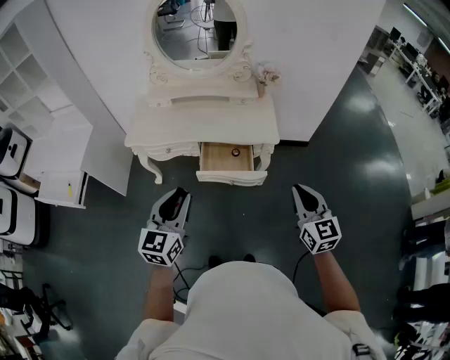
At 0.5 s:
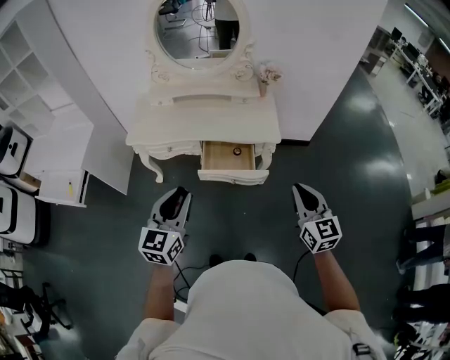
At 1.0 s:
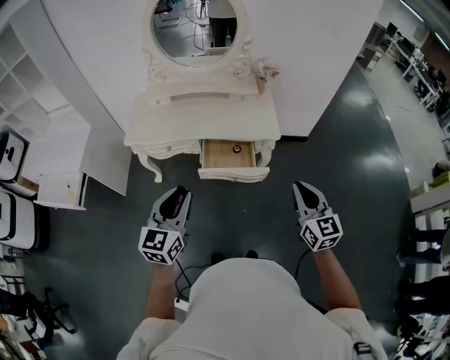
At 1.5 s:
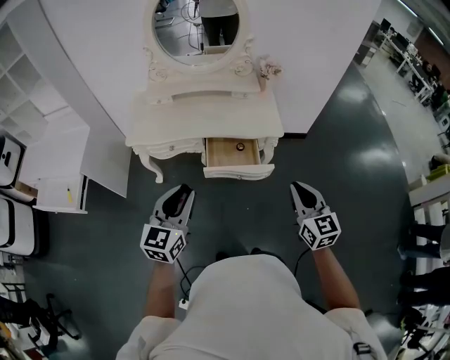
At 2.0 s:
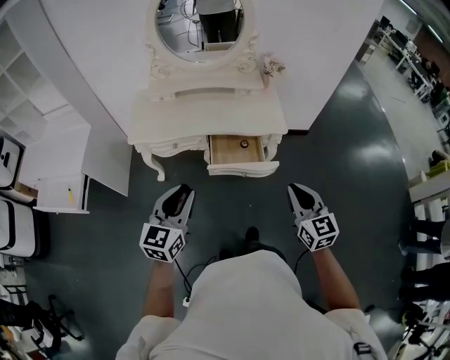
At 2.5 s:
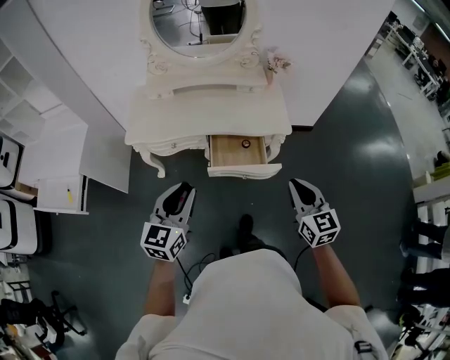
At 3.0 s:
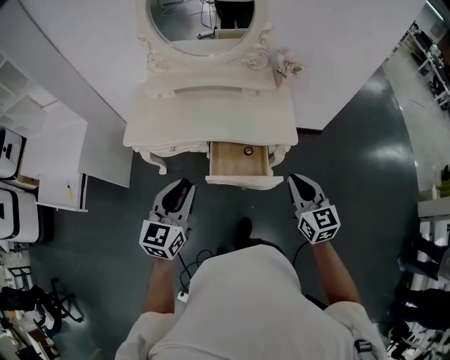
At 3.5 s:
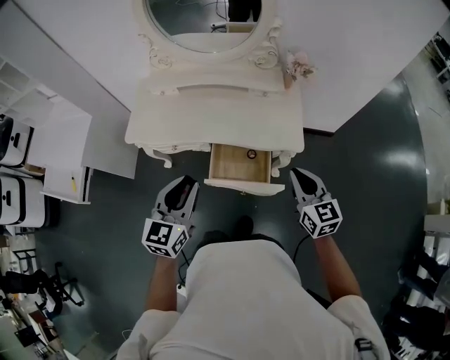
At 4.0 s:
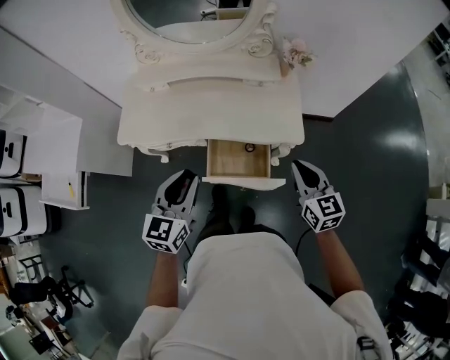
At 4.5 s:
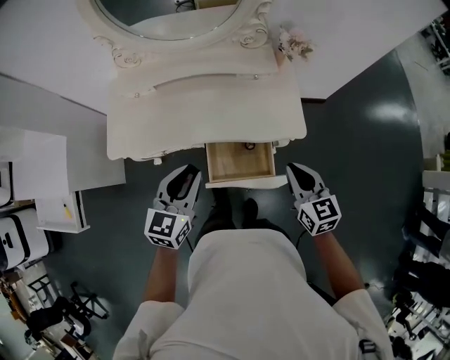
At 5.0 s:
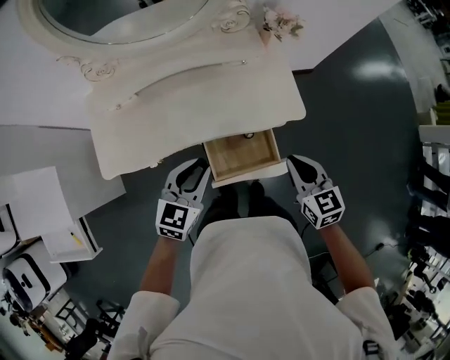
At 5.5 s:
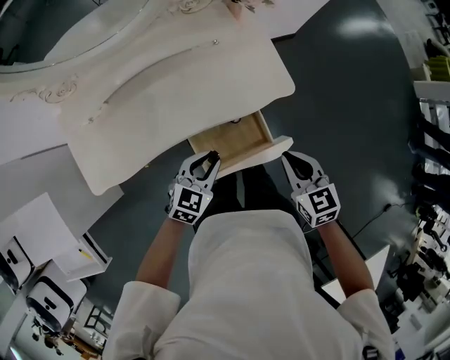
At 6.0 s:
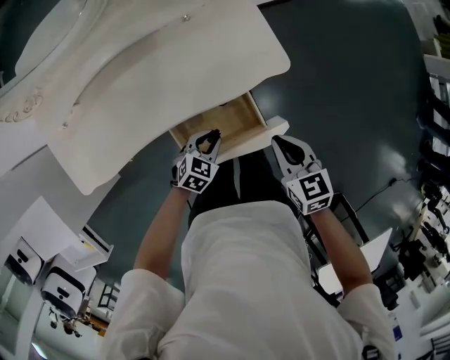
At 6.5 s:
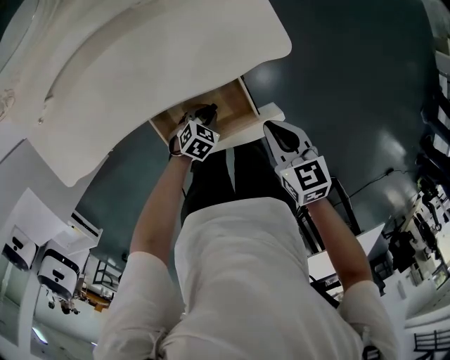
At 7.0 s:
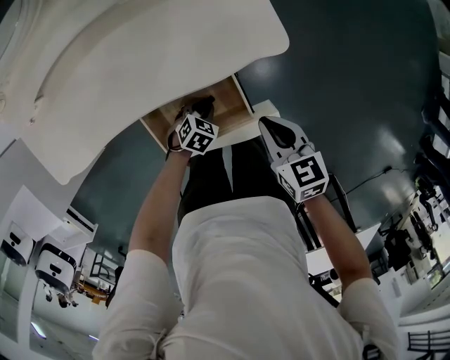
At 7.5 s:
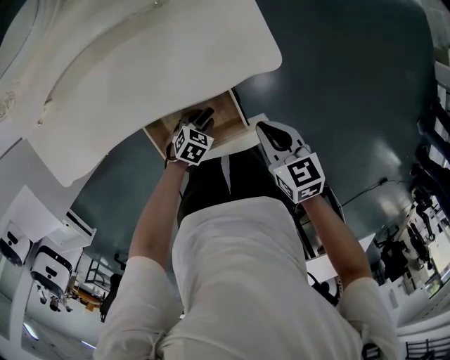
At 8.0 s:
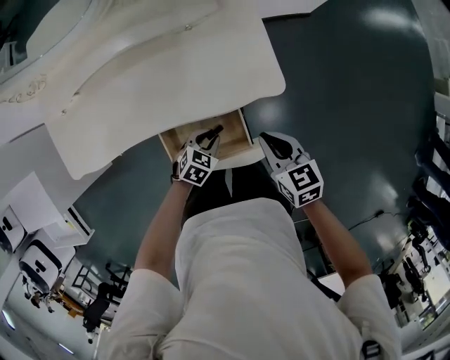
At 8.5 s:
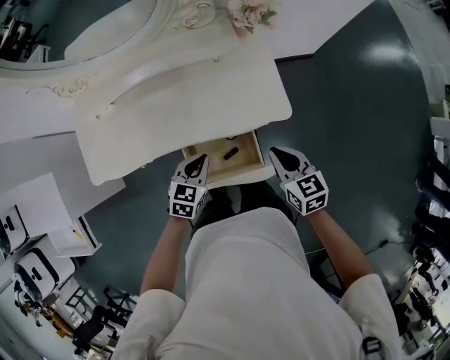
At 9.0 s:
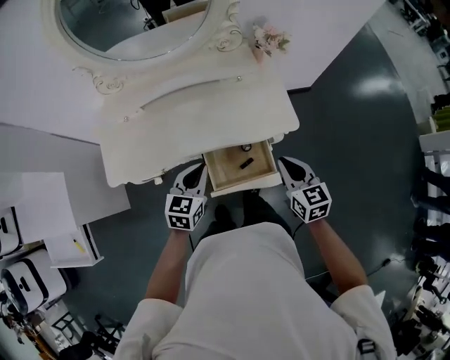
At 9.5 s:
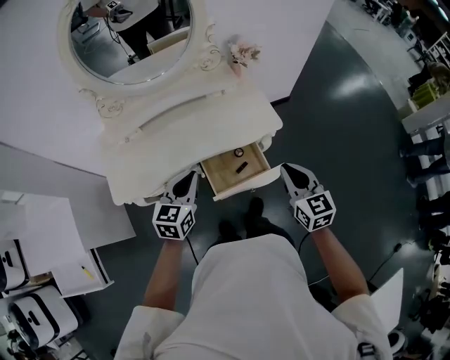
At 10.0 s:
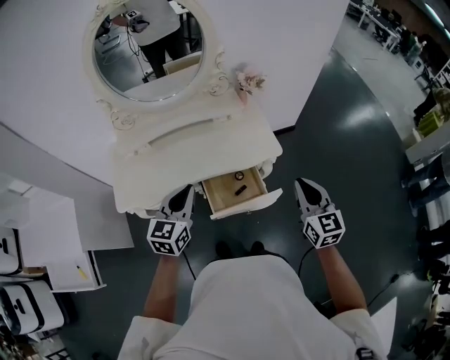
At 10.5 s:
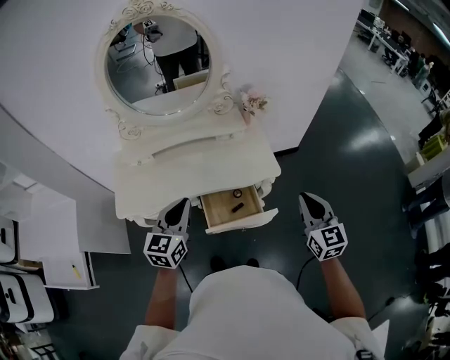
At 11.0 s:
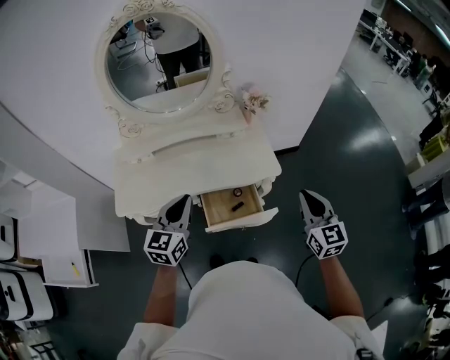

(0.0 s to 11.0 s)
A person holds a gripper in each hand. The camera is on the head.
0.0 s - 2.0 s: The grippers both shift to the left by approximately 10 cm.
2.0 s - 3.5 s: The right gripper moves forward, about 25 cm. The left gripper heads forward and to the right, covering roughly 20 cm.
3.5 s - 5.5 s: The left gripper shifts approximately 25 cm downward, and turns by approximately 50 degrees; the right gripper travels downward by approximately 10 cm, and changes its angle by some 30 degrees.
5.5 s - 7.5 s: The left gripper is displaced downward by some 25 cm, and swivels about 30 degrees; the right gripper shifts about 15 cm downward and forward.
7.5 s - 9.0 s: The right gripper travels upward by some 15 cm, and swivels about 20 degrees. The left gripper is displaced upward and to the left by approximately 40 cm, tilts its fingers some 40 degrees upward, and closes its fingers.
9.0 s - 11.0 s: The left gripper heads upward, covering about 20 cm; the right gripper goes approximately 20 cm upward and to the right, and rotates some 20 degrees.

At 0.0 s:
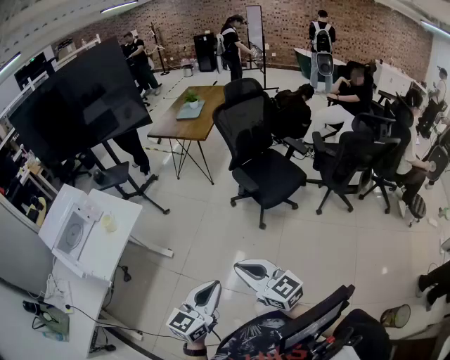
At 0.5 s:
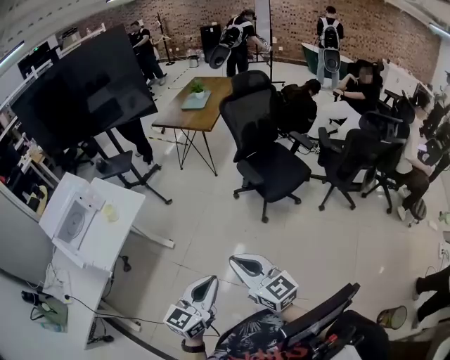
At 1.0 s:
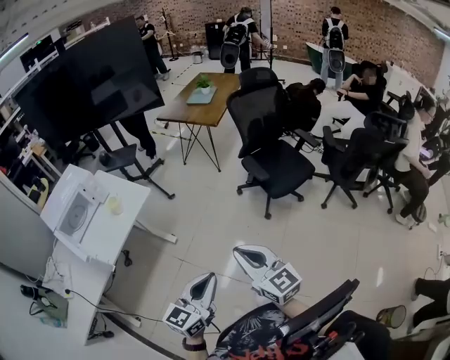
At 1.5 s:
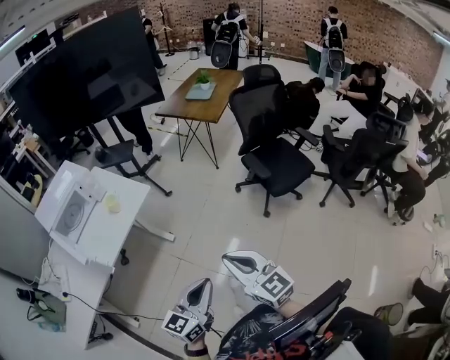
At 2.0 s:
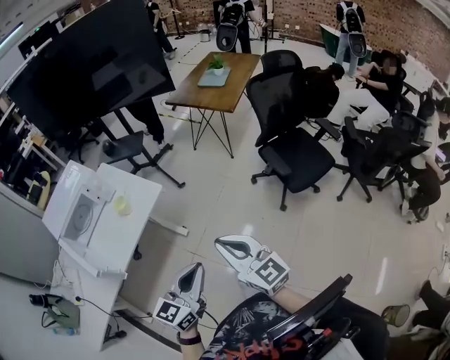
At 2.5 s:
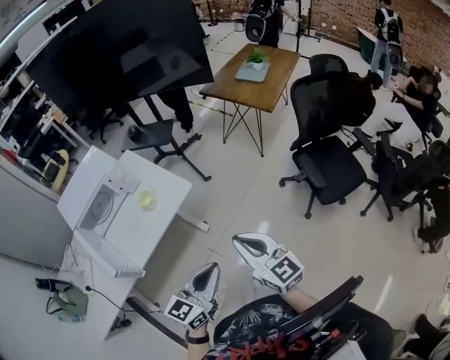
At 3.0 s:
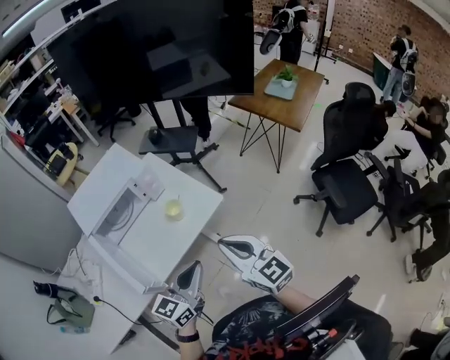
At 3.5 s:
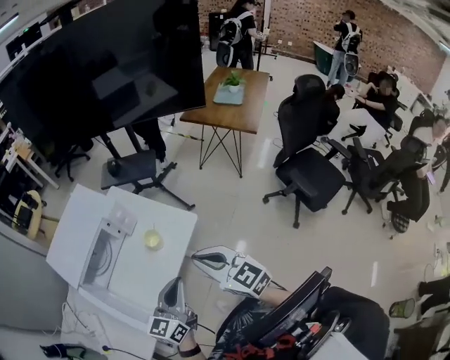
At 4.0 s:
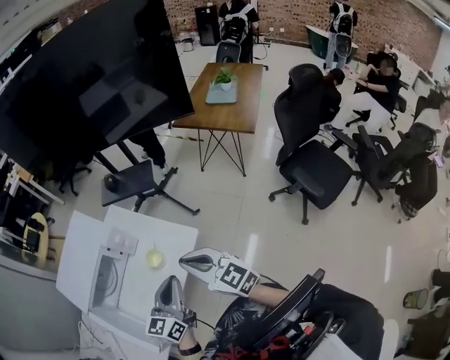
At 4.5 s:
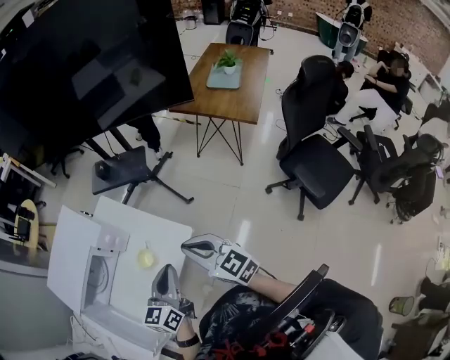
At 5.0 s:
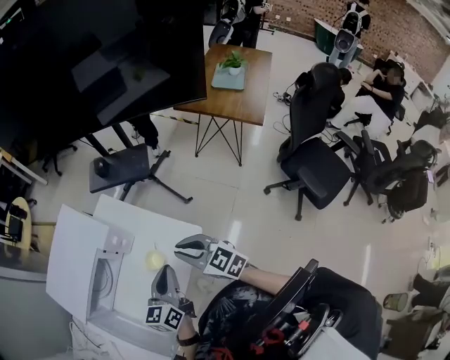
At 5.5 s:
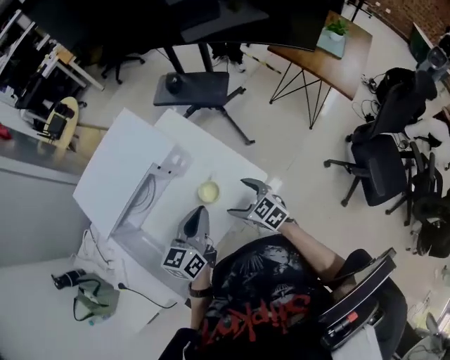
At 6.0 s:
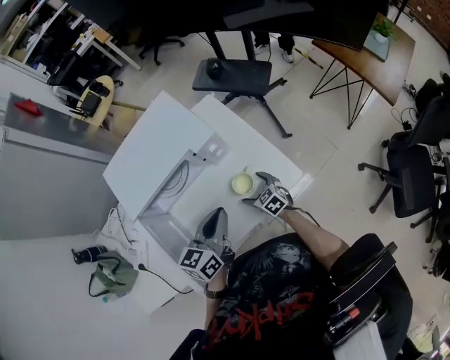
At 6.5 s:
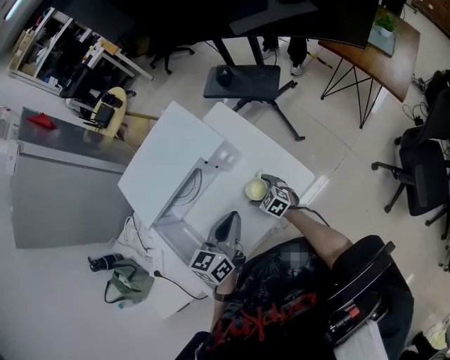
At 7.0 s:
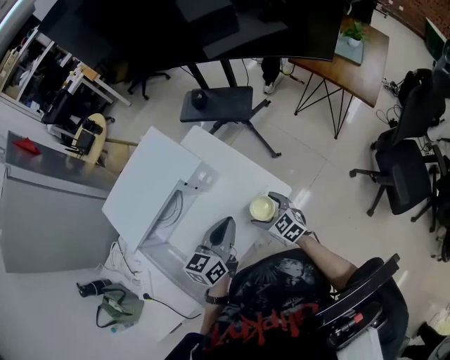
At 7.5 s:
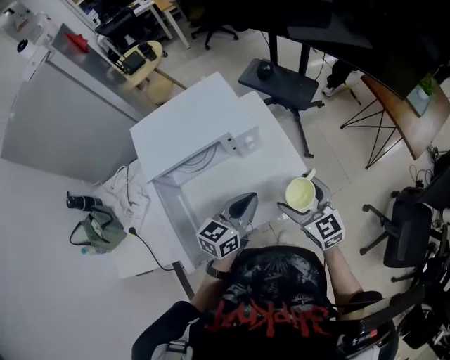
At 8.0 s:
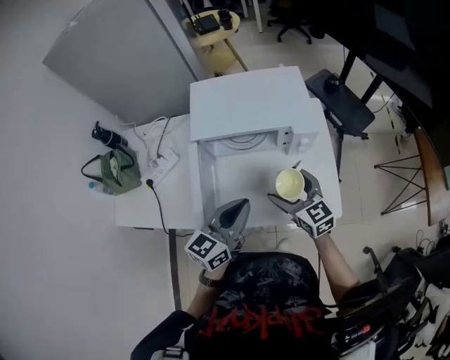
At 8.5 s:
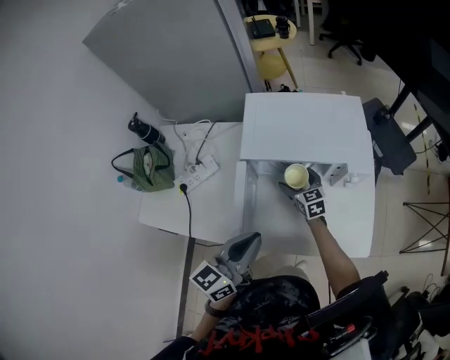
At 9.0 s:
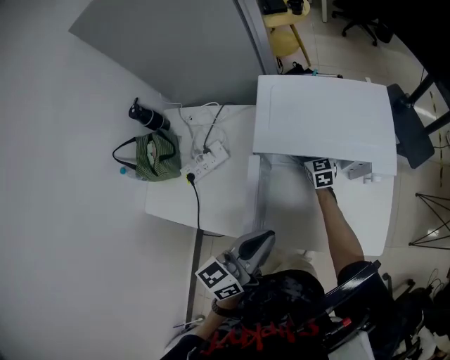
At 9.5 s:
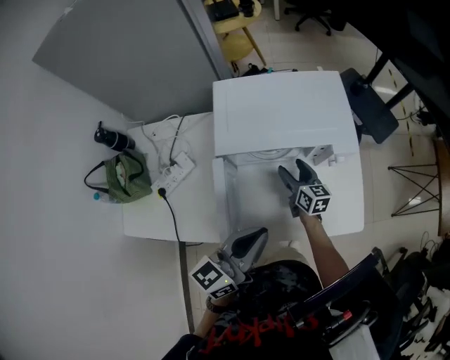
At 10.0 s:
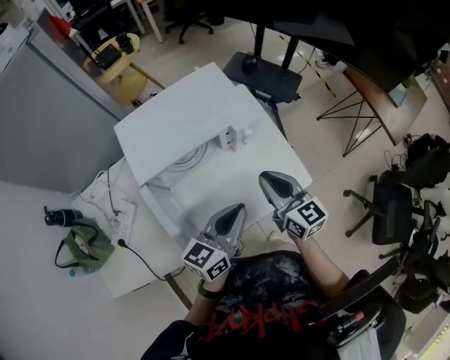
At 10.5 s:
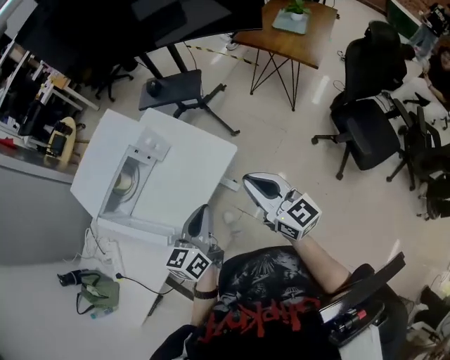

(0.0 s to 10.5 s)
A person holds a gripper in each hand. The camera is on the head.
0.0 s - 2.0 s: The grippers both shift to the left and forward by about 20 cm.
2.0 s - 4.0 s: Both grippers move forward and to the left, some 40 cm.
4.0 s - 6.5 s: The right gripper heads downward, forward and to the left, covering approximately 40 cm, tilts its fingers about 40 degrees downward, and opens up. Meanwhile the left gripper travels forward, to the left and downward by approximately 20 cm, and changes its angle by approximately 20 degrees.
6.5 s - 8.5 s: The right gripper moves some 25 cm, and swivels about 20 degrees, while the left gripper changes place by about 20 cm, and swivels some 30 degrees.
8.5 s - 10.5 s: The right gripper ends up approximately 60 cm from where it was, swivels some 50 degrees, and closes up, while the left gripper shifts by approximately 25 cm, and turns by some 40 degrees.

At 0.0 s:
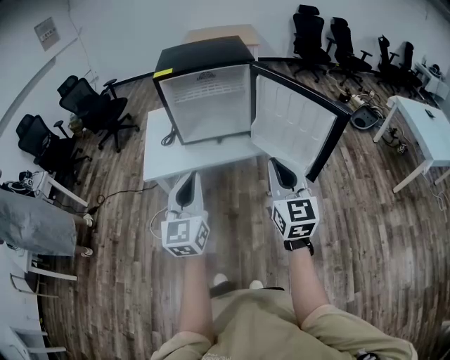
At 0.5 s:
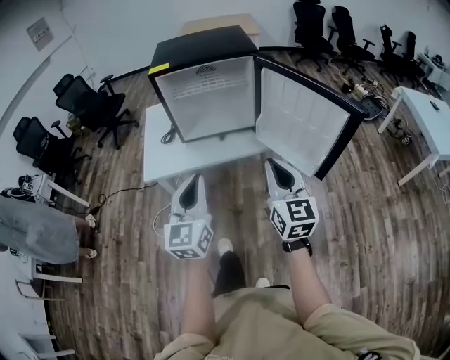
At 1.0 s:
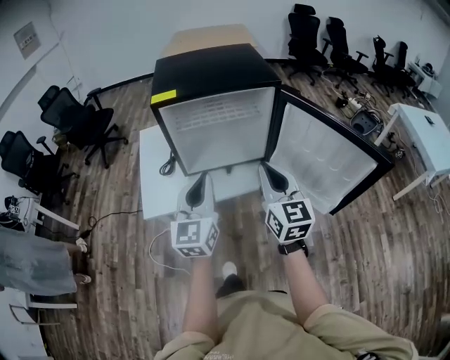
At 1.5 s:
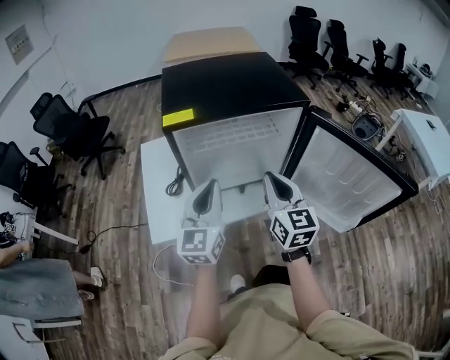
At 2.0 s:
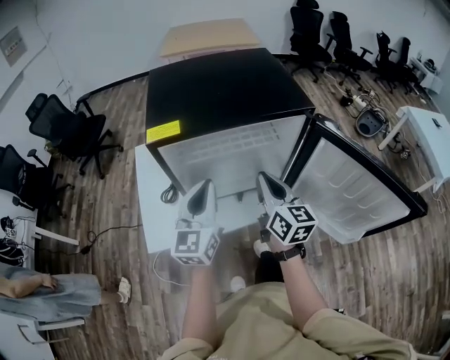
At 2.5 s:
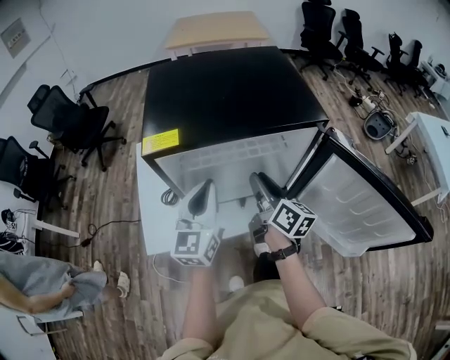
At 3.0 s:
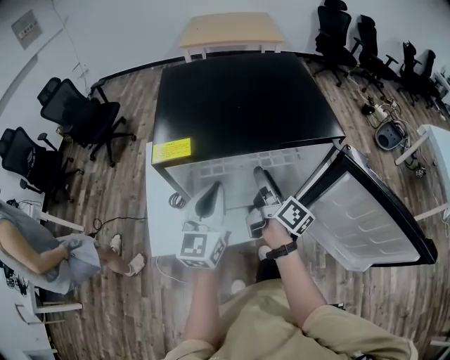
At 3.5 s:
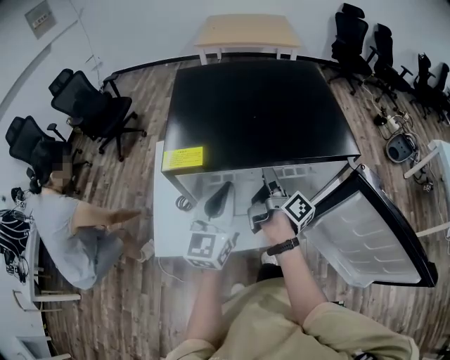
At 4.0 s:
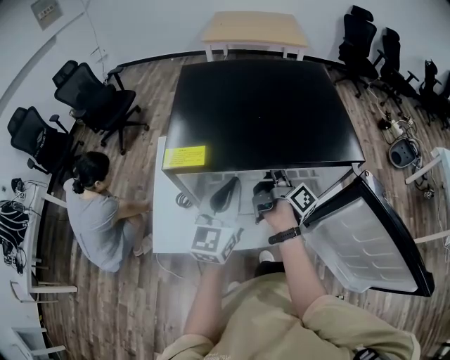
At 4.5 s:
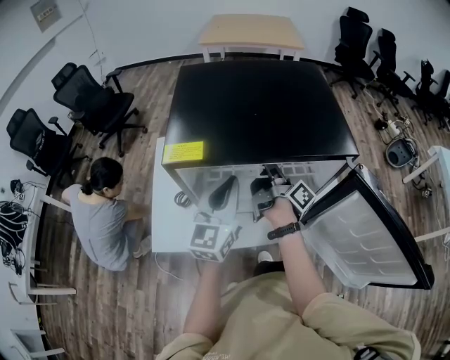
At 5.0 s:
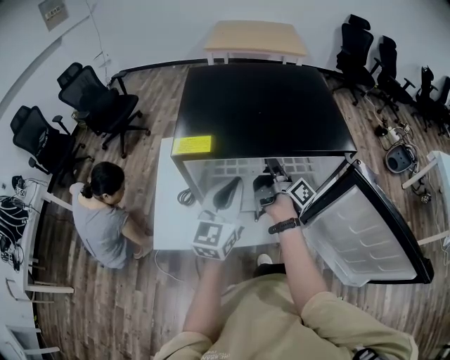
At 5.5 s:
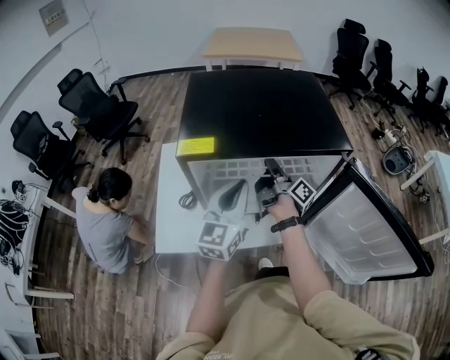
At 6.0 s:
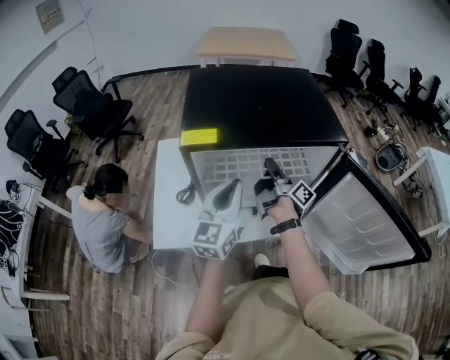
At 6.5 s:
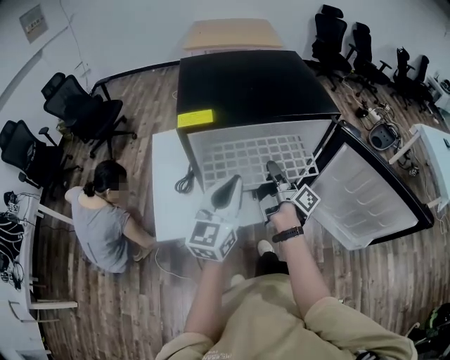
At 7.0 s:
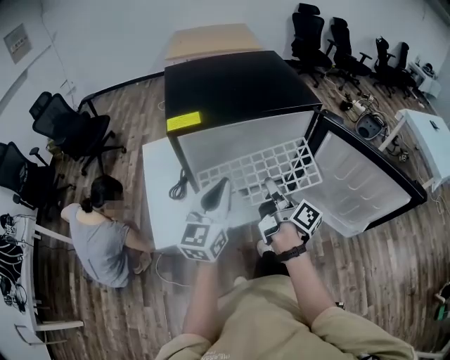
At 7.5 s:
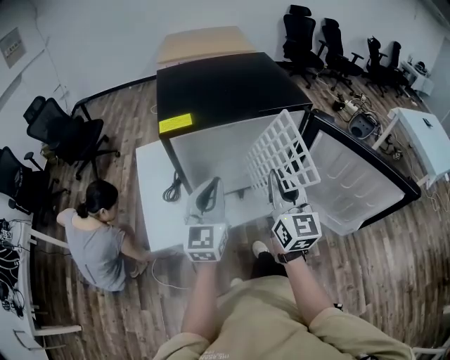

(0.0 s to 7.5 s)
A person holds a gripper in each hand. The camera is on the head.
0.0 s - 2.0 s: The pair of grippers is taken forward, roughly 40 cm. The right gripper rotates about 30 degrees.
2.0 s - 4.0 s: The right gripper moves forward, approximately 20 cm, rolls clockwise, seen from behind, by some 60 degrees, and opens up. The left gripper goes some 10 cm forward.
4.0 s - 5.5 s: The right gripper closes.
5.5 s - 7.5 s: The right gripper shifts about 25 cm backward and upward, and rolls counterclockwise, seen from behind, by approximately 80 degrees. The left gripper is displaced backward by roughly 10 cm.
